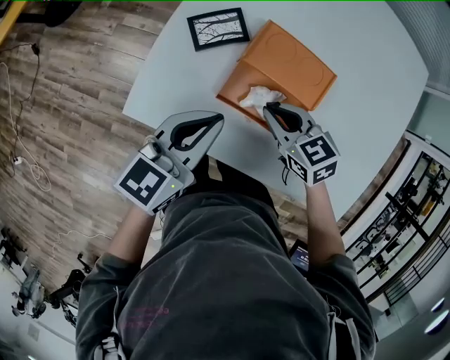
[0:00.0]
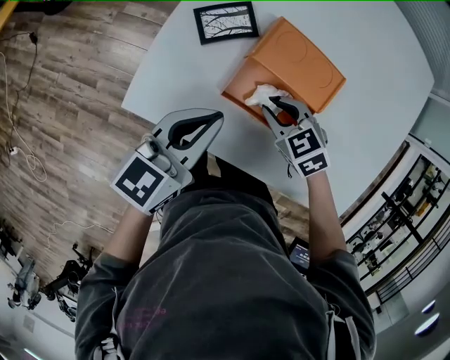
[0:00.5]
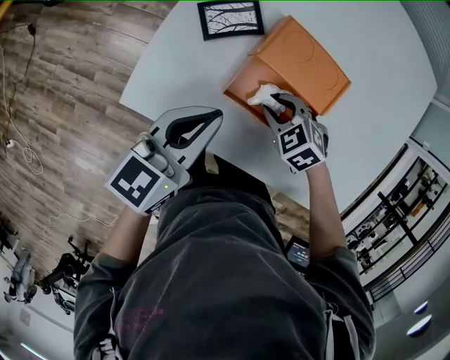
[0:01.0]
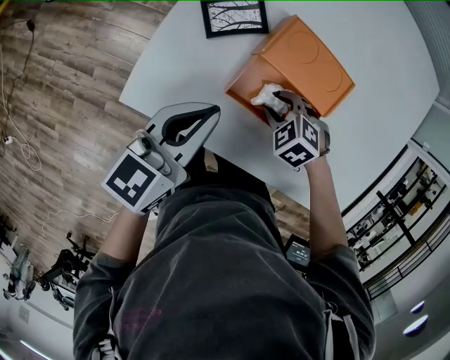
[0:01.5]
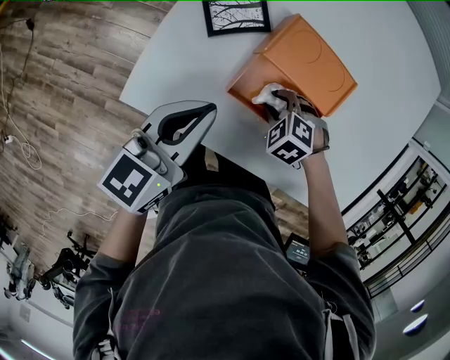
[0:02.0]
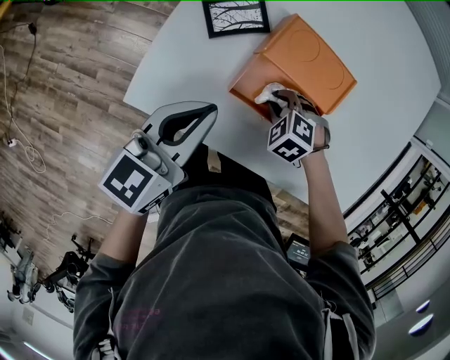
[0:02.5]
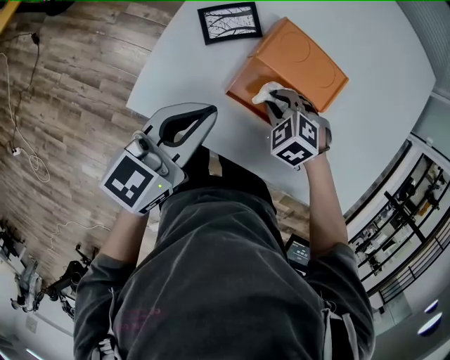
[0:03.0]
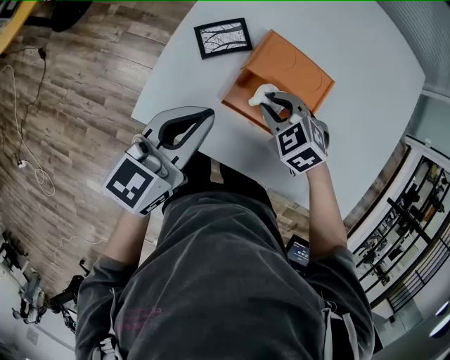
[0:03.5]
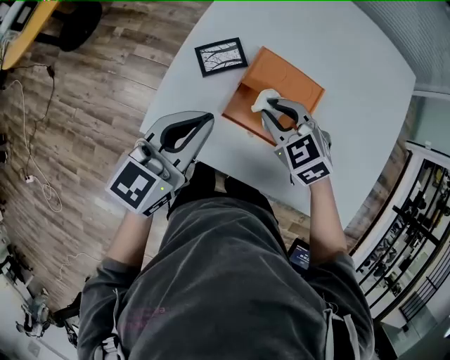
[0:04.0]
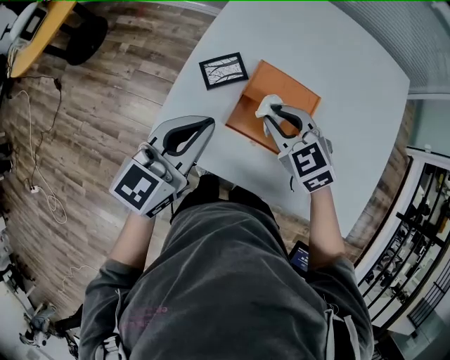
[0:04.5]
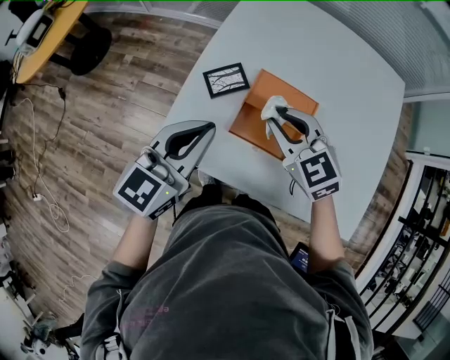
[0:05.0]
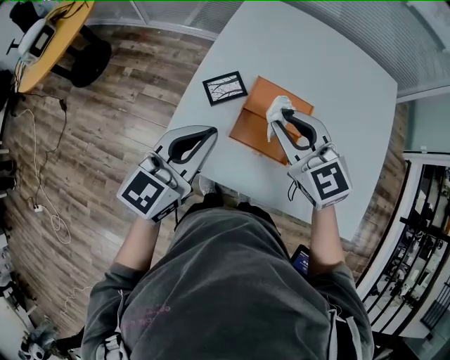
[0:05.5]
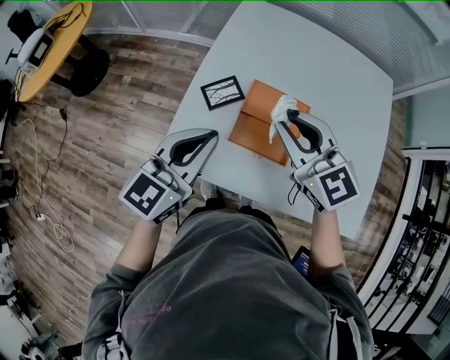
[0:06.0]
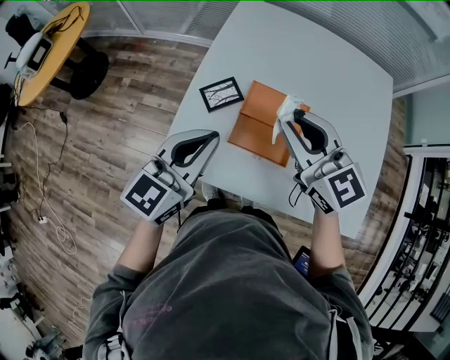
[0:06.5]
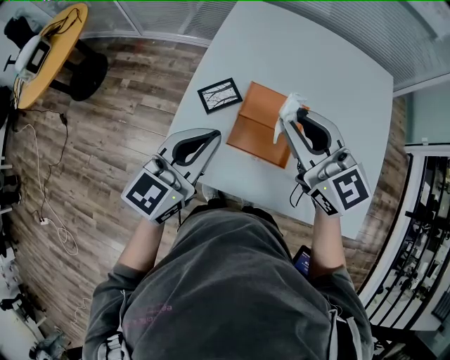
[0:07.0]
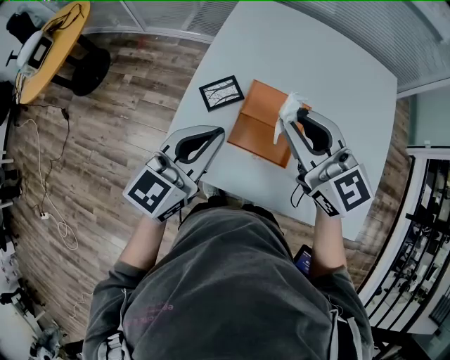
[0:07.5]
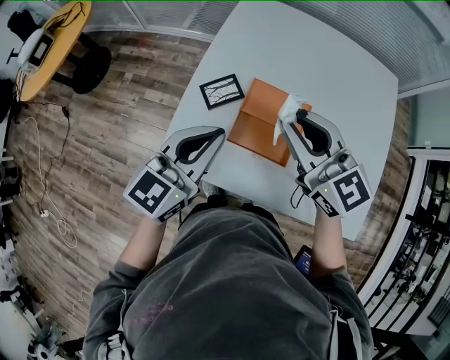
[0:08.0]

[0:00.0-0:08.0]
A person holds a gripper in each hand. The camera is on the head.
0:00.0 to 0:02.0: The right gripper is displaced downward by some 10 cm, angles its fingers downward, by some 40 degrees, and opens up; the left gripper shifts by roughly 5 cm.
0:02.0 to 0:04.0: The left gripper moves upward, roughly 10 cm. Meanwhile the right gripper shifts approximately 20 cm upward, and tilts its fingers some 30 degrees upward.
0:04.0 to 0:06.0: The right gripper heads upward, covering roughly 20 cm, and points its fingers some 30 degrees further upward, while the left gripper travels upward by about 10 cm.
0:06.0 to 0:08.0: The grippers make only small movements.

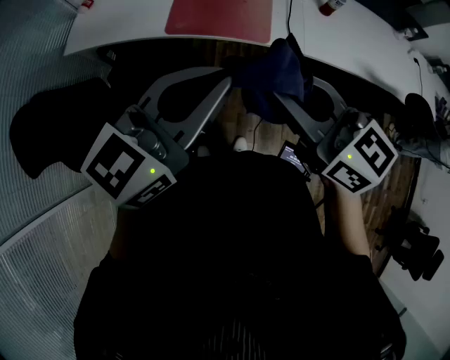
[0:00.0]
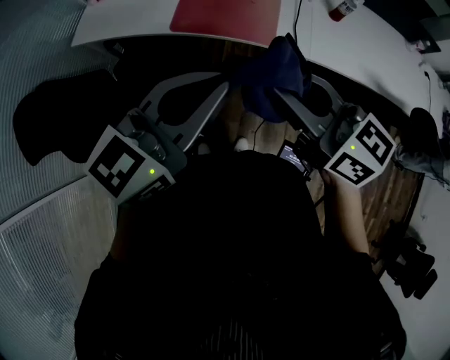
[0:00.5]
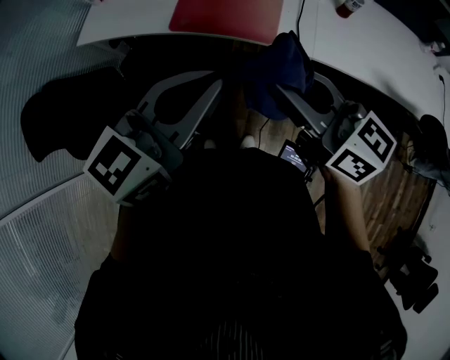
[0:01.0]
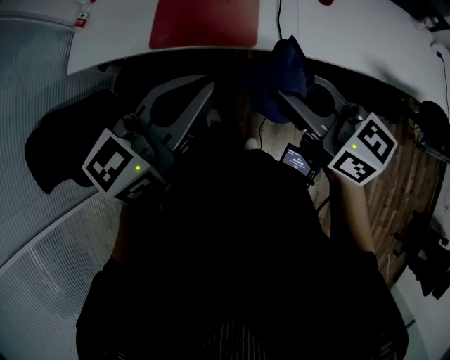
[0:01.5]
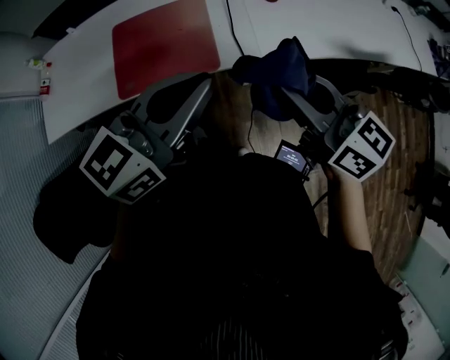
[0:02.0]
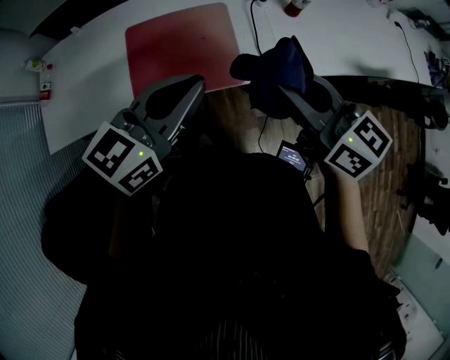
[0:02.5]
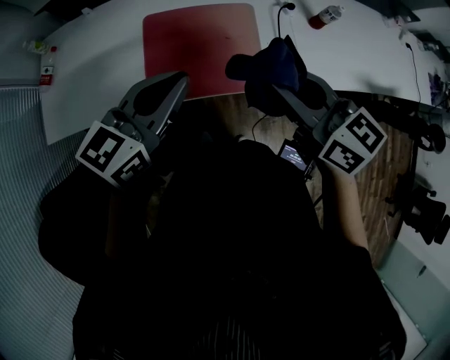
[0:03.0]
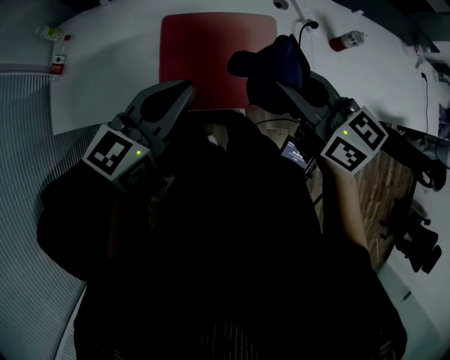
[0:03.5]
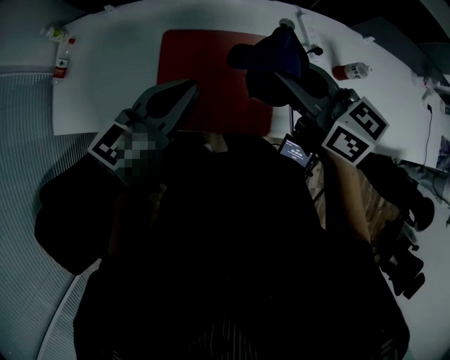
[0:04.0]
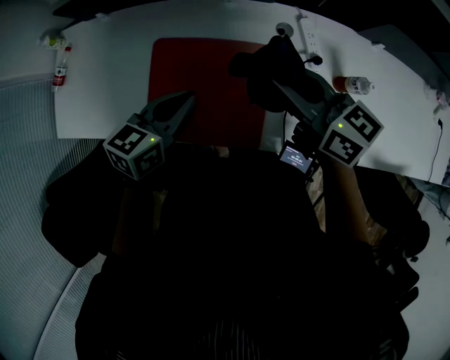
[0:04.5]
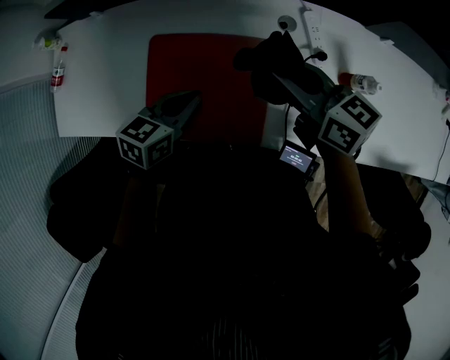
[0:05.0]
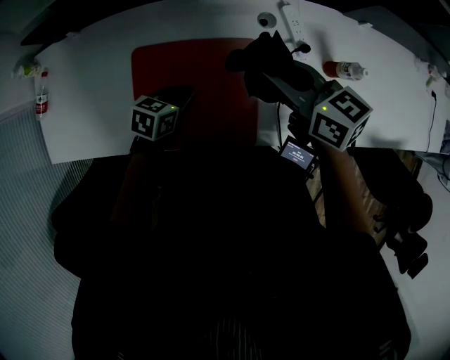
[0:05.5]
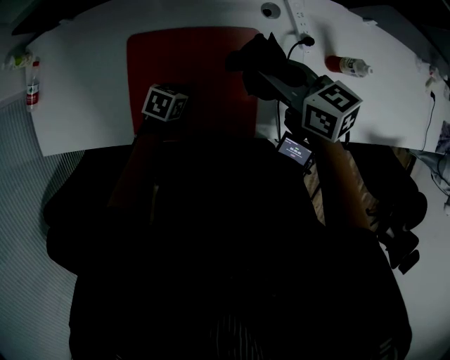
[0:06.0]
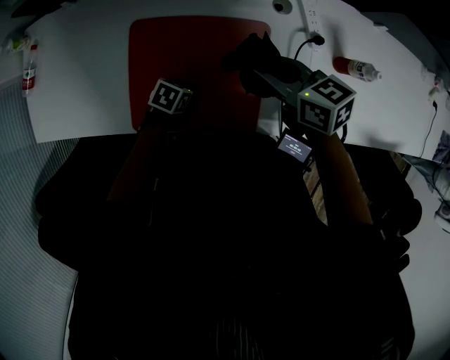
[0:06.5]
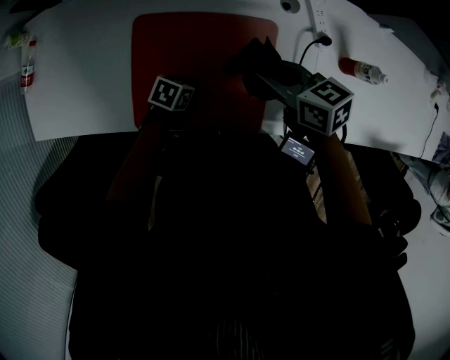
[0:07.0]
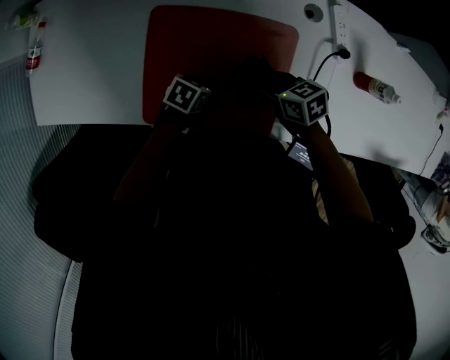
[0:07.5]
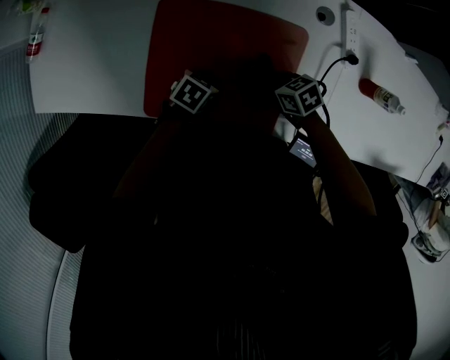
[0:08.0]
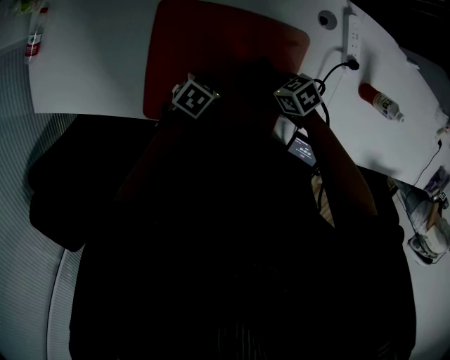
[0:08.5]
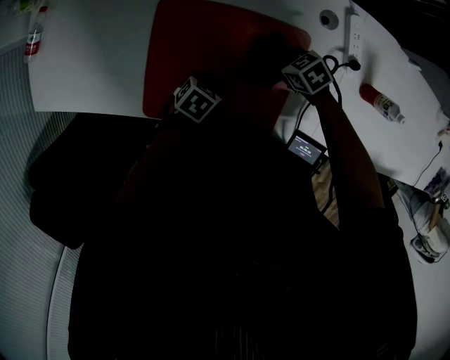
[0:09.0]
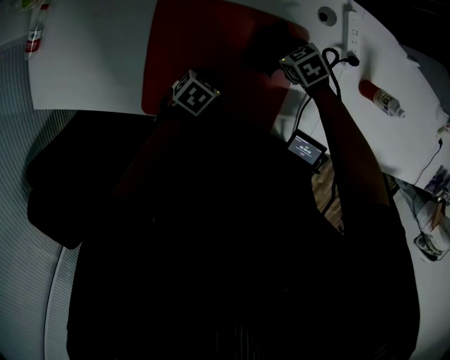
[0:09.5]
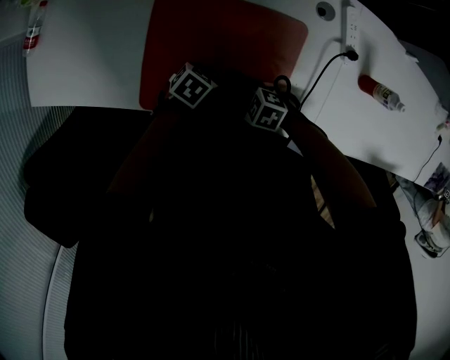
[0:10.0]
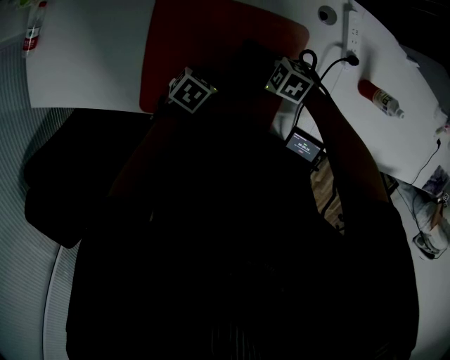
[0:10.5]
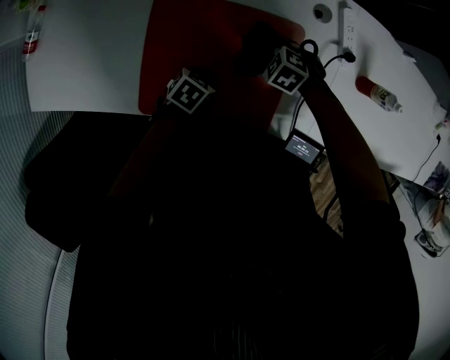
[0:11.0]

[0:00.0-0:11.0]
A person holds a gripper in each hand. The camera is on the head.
0:00.0 to 0:02.0: Both grippers move to the right and forward, about 20 cm. The right gripper swivels approximately 20 degrees.
0:02.0 to 0:03.5: Both grippers travel together to the left and forward, roughly 30 cm.
0:03.5 to 0:05.5: The right gripper goes about 25 cm forward, to the right and downward, while the left gripper is displaced downward and forward by approximately 30 cm, and tips its fingers downward by about 30 degrees.
0:05.5 to 0:07.5: The left gripper shifts approximately 15 cm downward. The right gripper moves downward, approximately 25 cm, and changes its angle by approximately 30 degrees.
0:07.5 to 0:09.0: The right gripper travels downward by approximately 5 cm, and turns by roughly 20 degrees.
0:09.0 to 0:11.0: The right gripper rotates some 30 degrees.

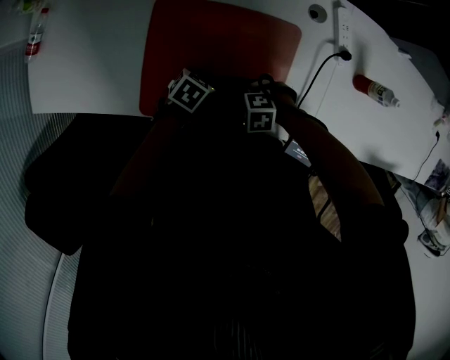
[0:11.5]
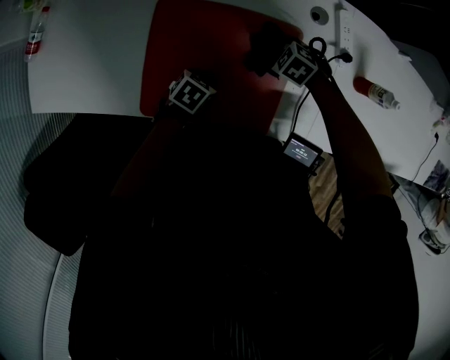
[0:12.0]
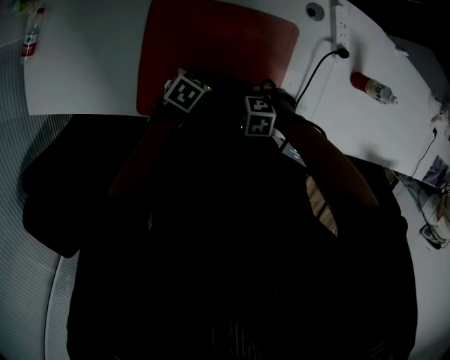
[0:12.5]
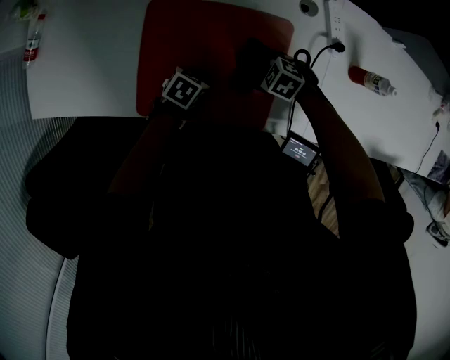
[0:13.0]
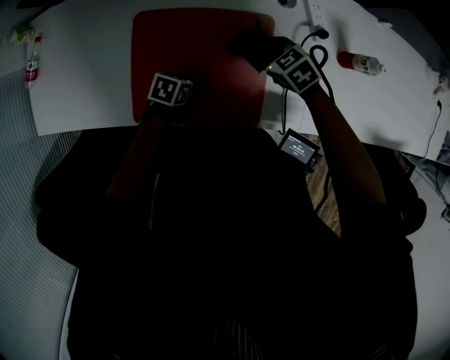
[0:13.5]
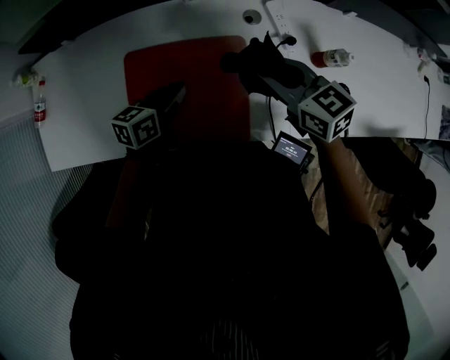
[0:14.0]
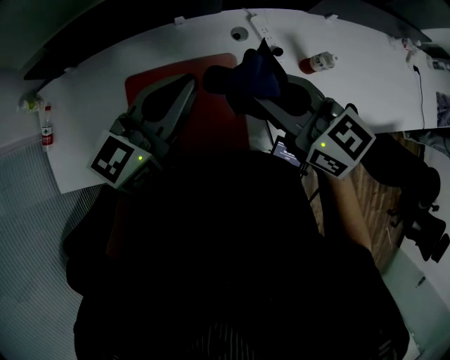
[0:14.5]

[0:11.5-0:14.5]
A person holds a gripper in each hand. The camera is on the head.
0:11.5 to 0:13.0: The right gripper changes its angle by some 30 degrees.
0:13.0 to 0:14.5: The two grippers go about 40 cm upward. The right gripper tilts its fingers some 60 degrees upward, while the left gripper points its fingers approximately 60 degrees further upward.

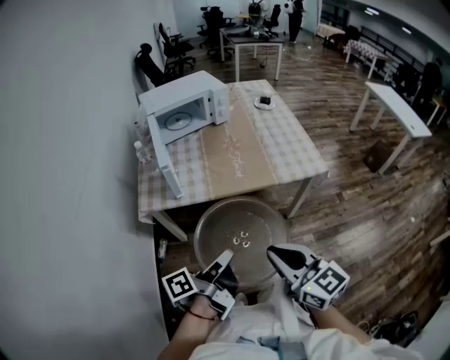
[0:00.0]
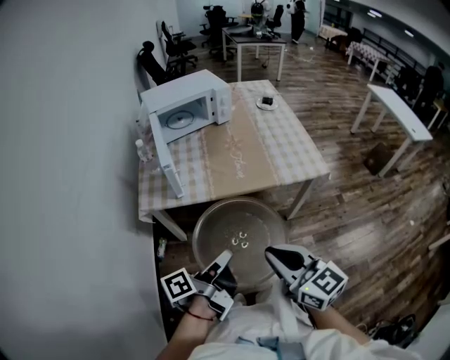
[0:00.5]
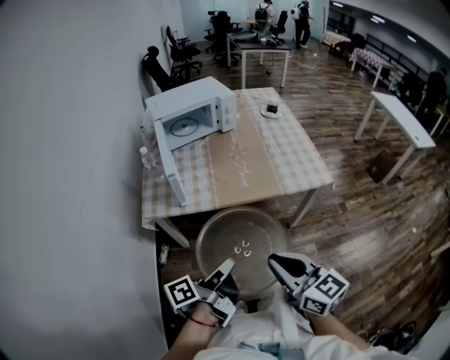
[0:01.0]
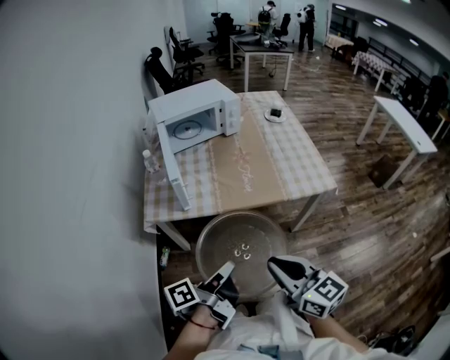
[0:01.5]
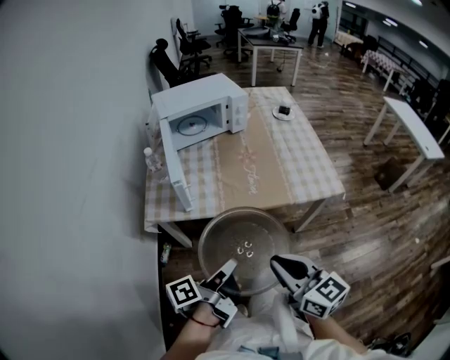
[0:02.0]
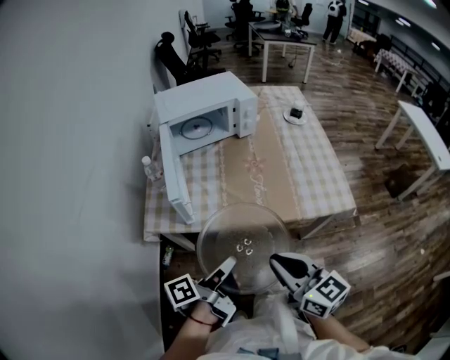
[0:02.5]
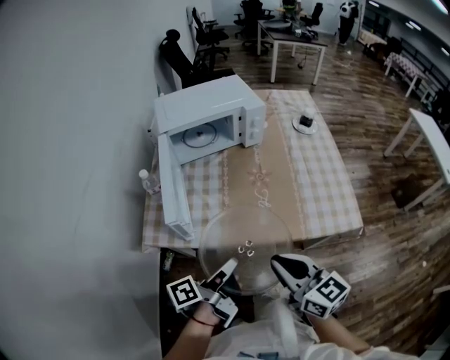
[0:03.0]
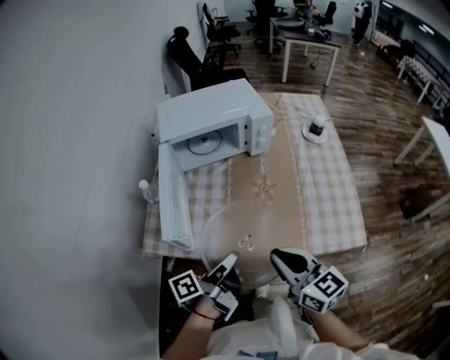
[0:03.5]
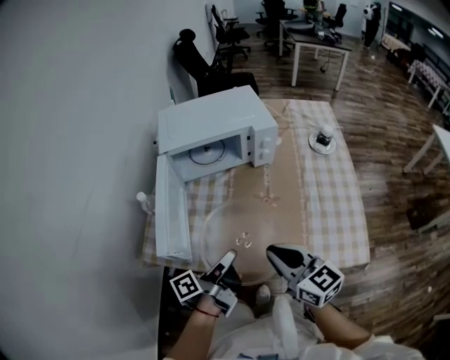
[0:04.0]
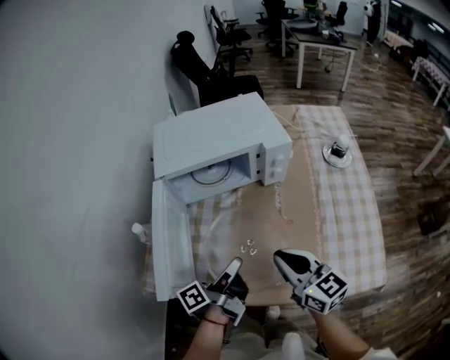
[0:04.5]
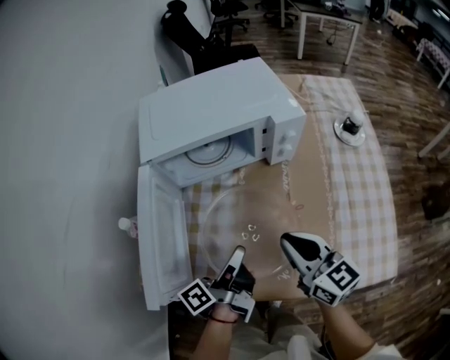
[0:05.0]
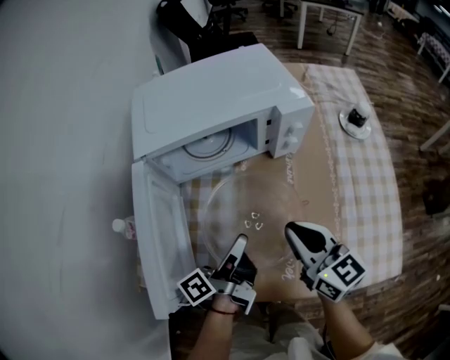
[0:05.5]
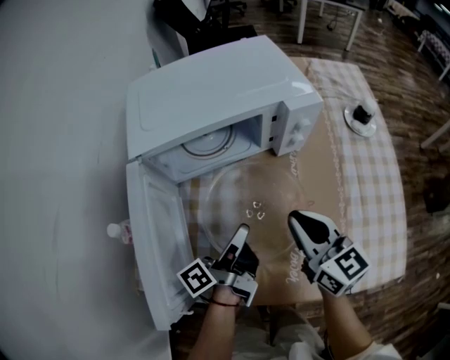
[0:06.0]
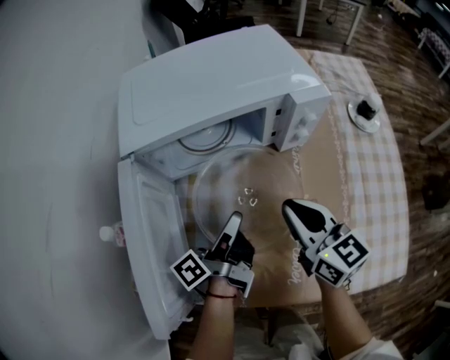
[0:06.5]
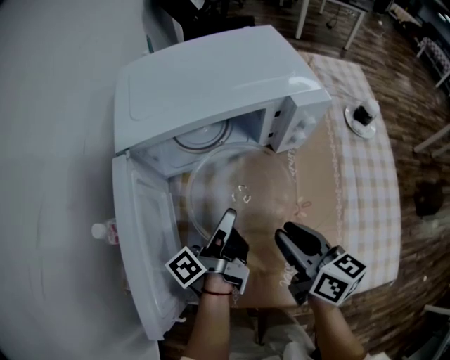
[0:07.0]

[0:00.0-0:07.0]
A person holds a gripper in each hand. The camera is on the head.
0:00.0 to 0:02.0: The right gripper shifts by about 10 cm.
0:02.0 to 0:03.5: The right gripper shifts by roughly 25 cm.
0:03.5 to 0:05.0: The right gripper moves some 25 cm.
0:05.0 to 0:07.0: The right gripper moves downward, roughly 5 cm, changes its angle by roughly 20 degrees, and opens up.
